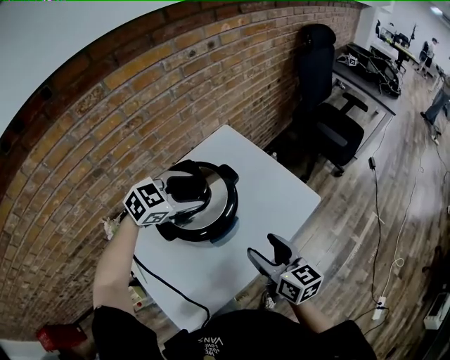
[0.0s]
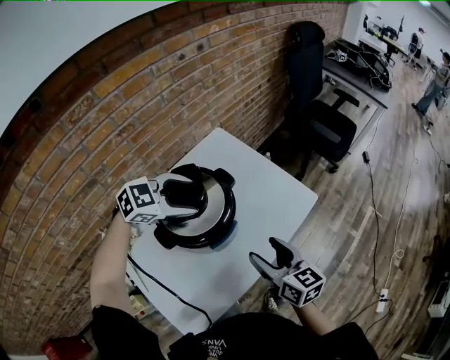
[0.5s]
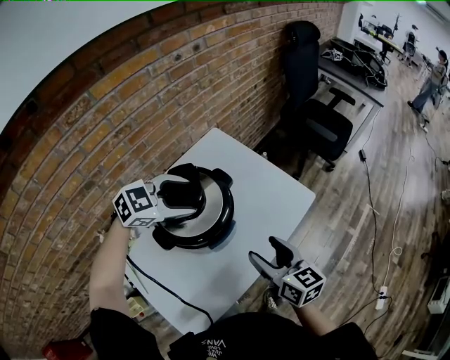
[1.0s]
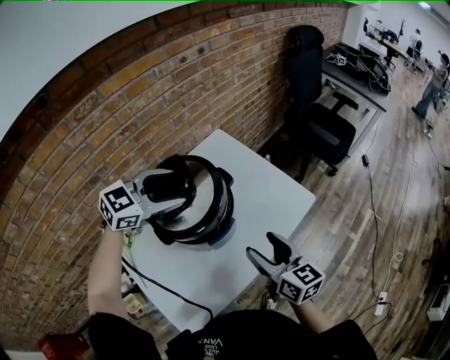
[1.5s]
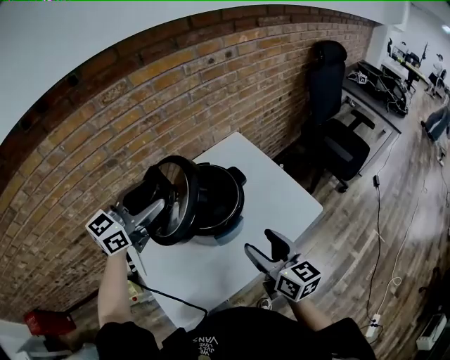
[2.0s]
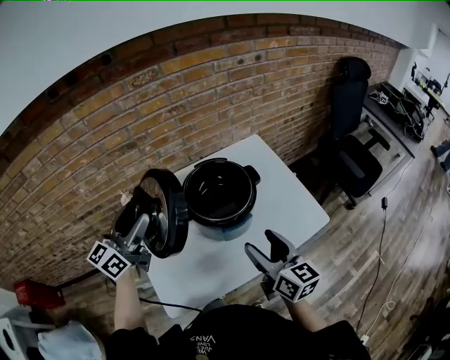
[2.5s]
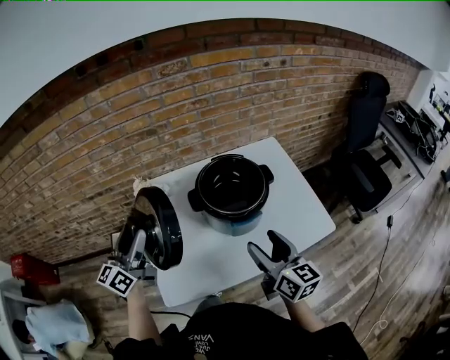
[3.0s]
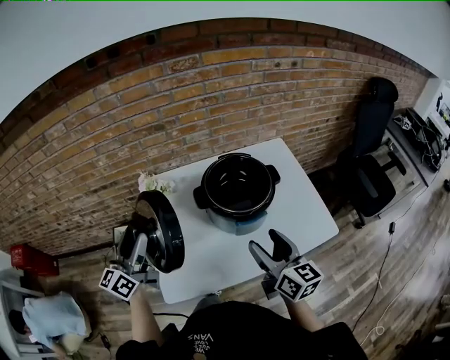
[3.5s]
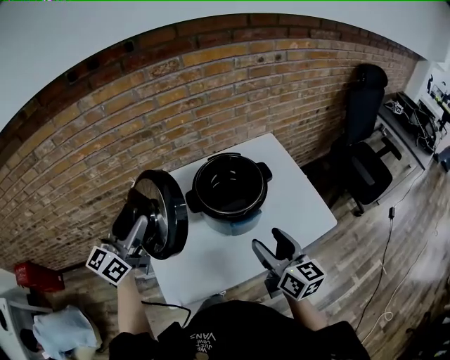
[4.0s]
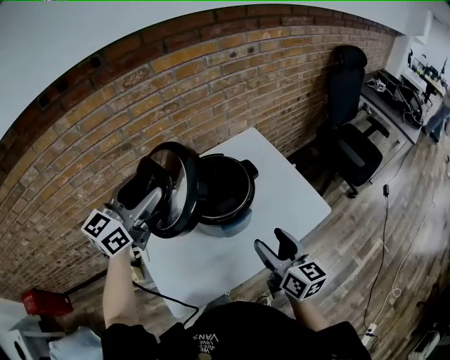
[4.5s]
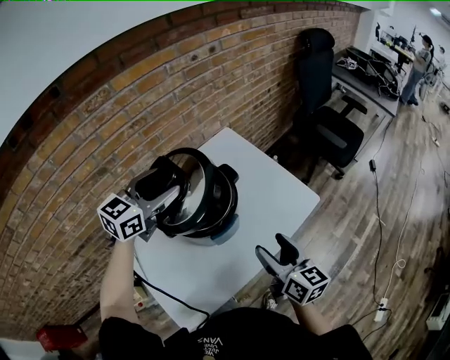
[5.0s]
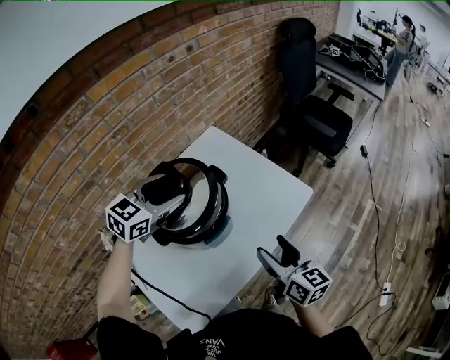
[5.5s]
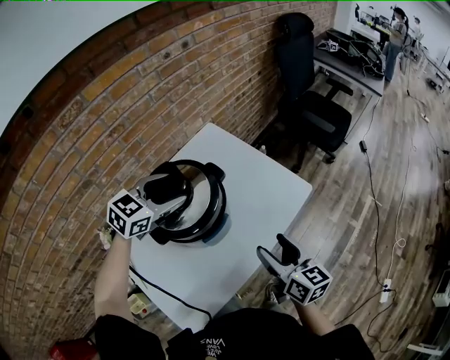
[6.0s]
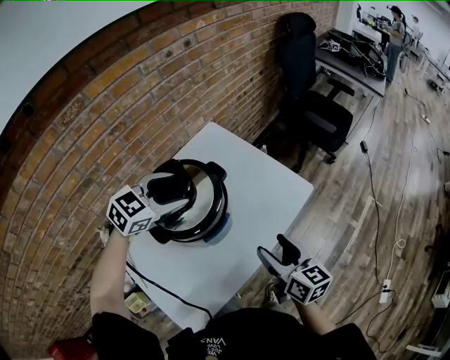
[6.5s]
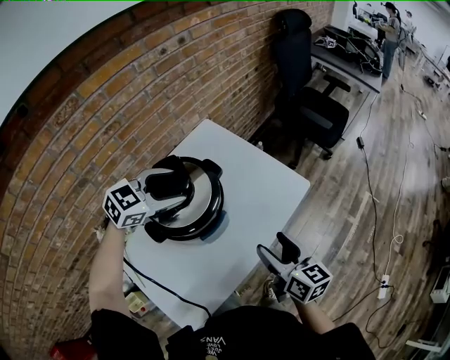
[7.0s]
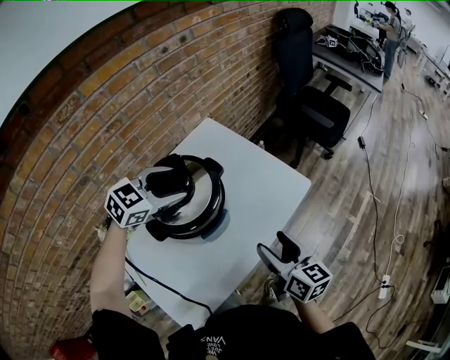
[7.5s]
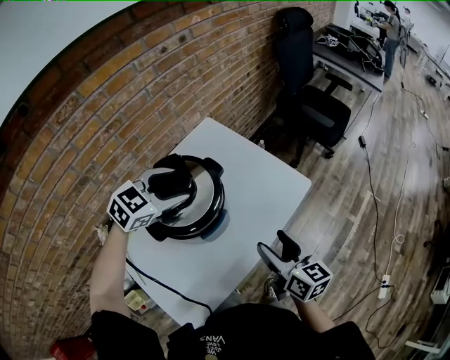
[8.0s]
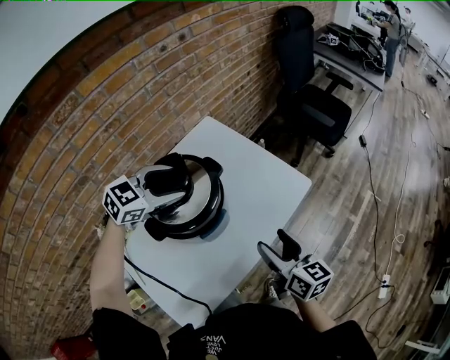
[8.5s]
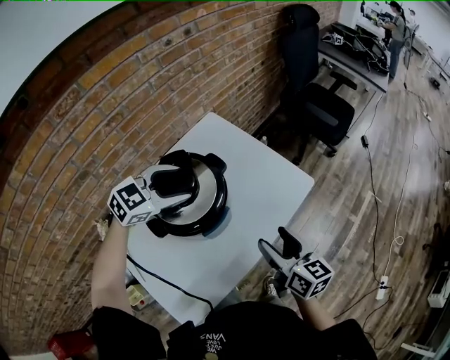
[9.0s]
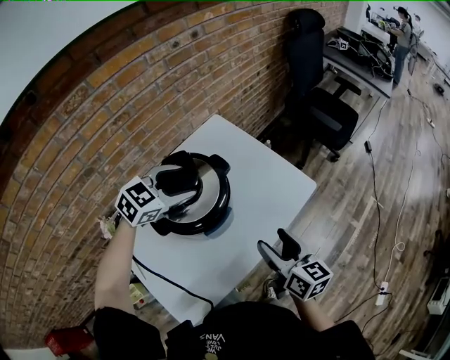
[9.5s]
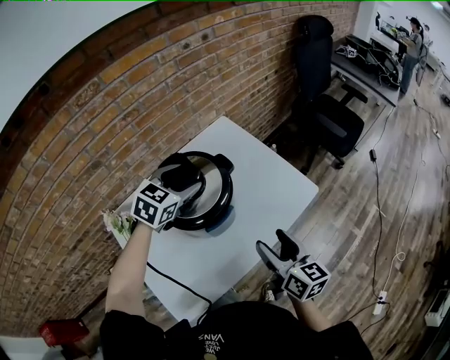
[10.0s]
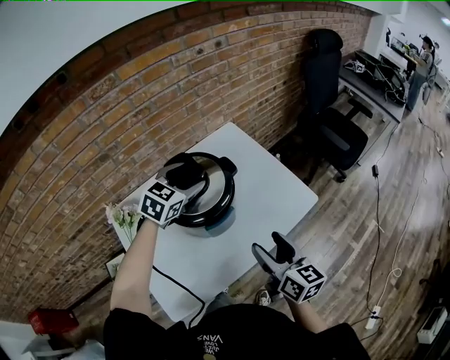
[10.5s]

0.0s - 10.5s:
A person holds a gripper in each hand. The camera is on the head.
0.0s - 2.0s: The left gripper heads upward, to the left and backward, covering about 20 cm, and points its fingers approximately 30 degrees further upward.
2.0s - 4.0s: The left gripper shifts by some 20 cm, and rotates roughly 30 degrees.
4.0s - 6.5s: The right gripper moves roughly 10 cm, and turns by some 20 degrees; the left gripper ends up about 30 cm from where it was, and angles its fingers downward, by approximately 40 degrees.
6.5s - 8.5s: The grippers move only a little.
8.5s - 10.5s: The left gripper turns by approximately 30 degrees.

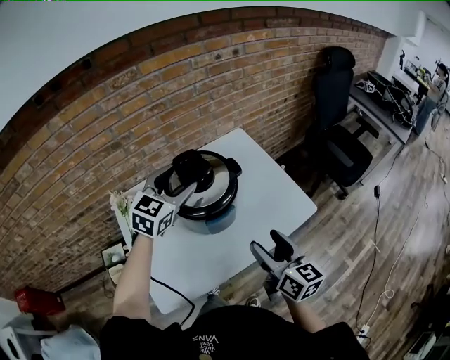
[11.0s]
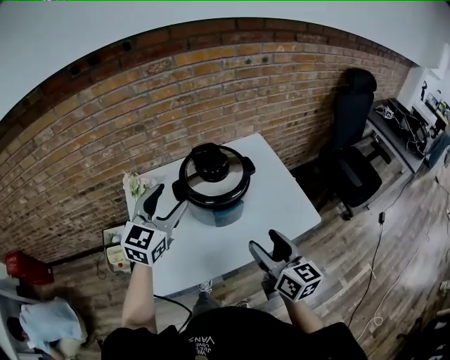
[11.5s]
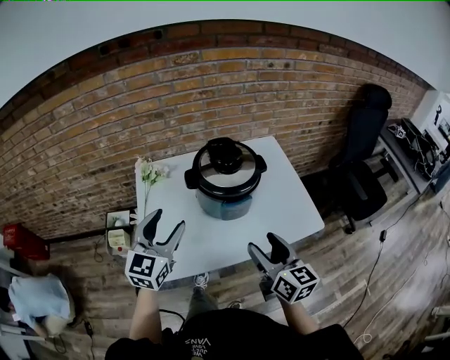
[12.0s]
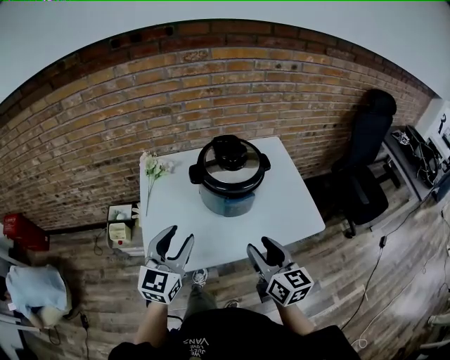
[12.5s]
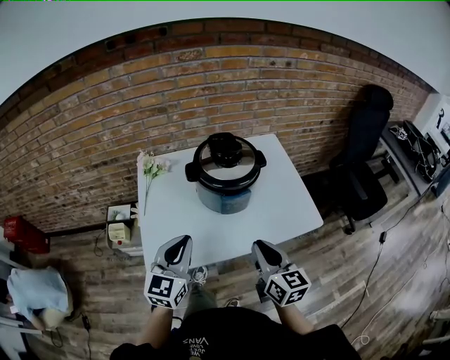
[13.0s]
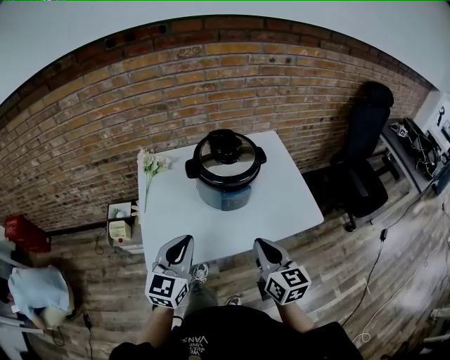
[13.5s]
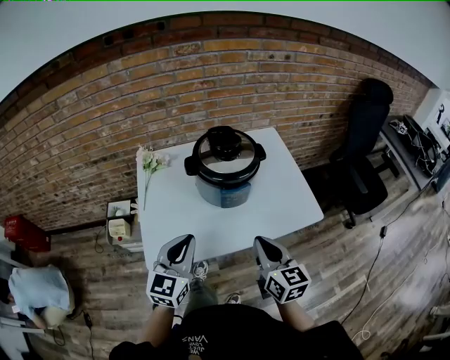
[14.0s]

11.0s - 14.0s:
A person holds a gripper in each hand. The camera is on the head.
11.0s - 12.5s: The left gripper heads backward, covering some 25 cm, and turns by roughly 30 degrees; the right gripper shifts by some 5 cm.
12.5s - 14.0s: The right gripper closes up. The left gripper closes its fingers.

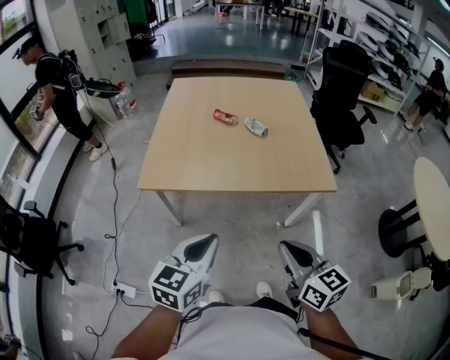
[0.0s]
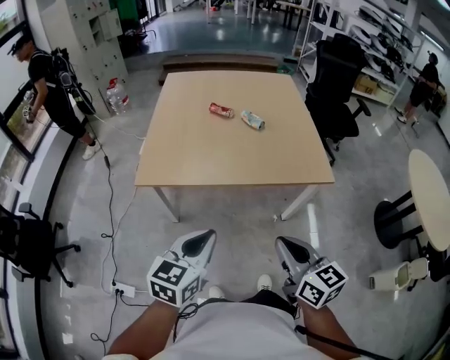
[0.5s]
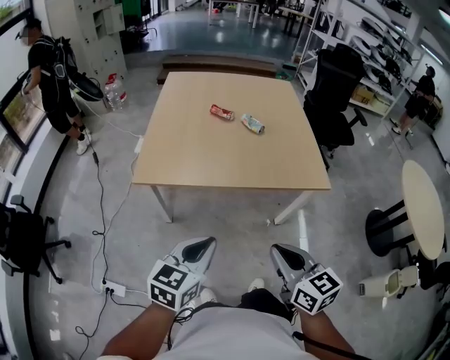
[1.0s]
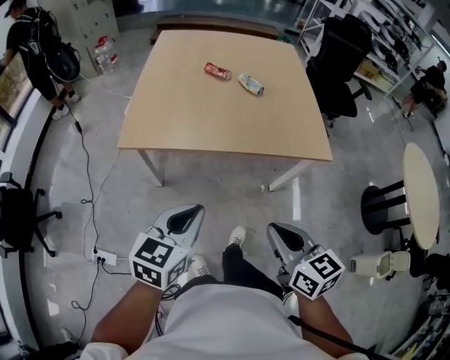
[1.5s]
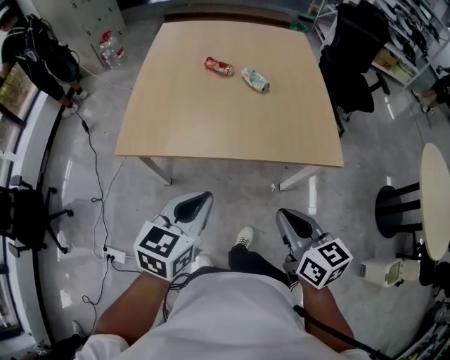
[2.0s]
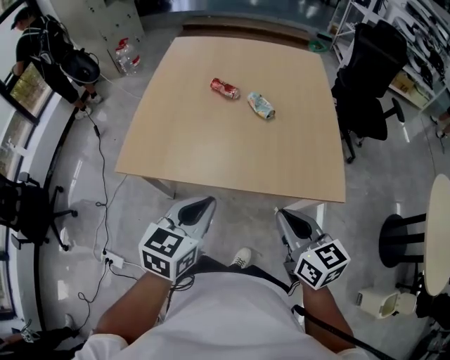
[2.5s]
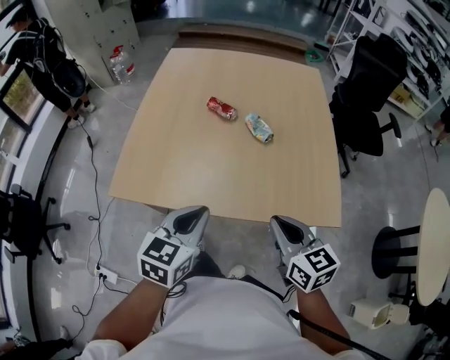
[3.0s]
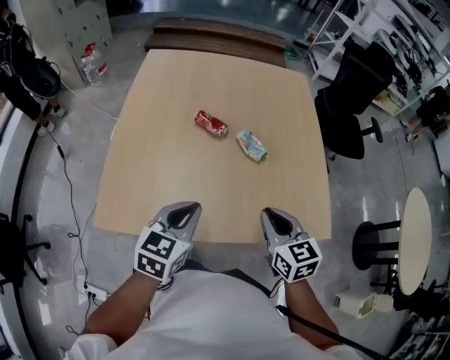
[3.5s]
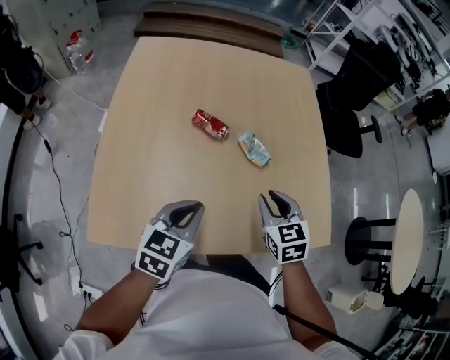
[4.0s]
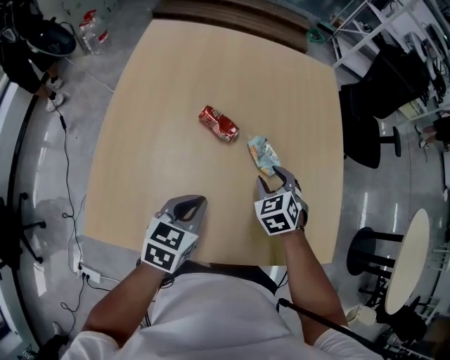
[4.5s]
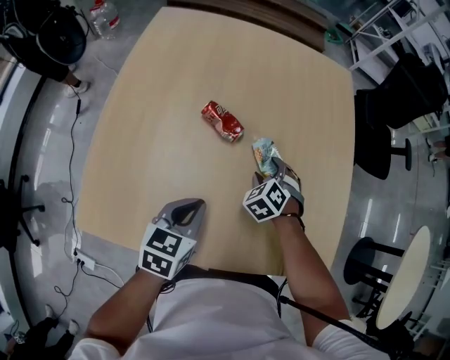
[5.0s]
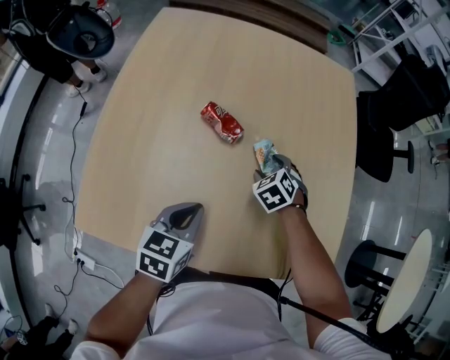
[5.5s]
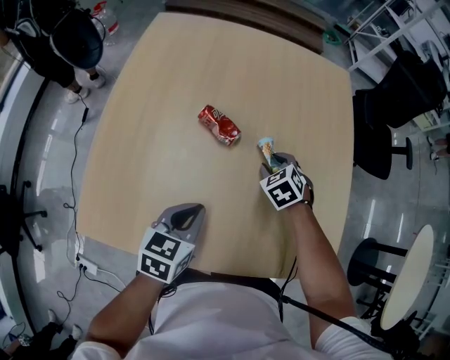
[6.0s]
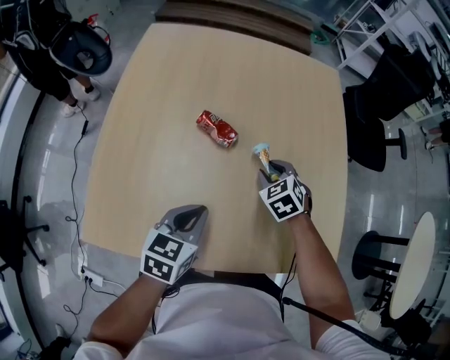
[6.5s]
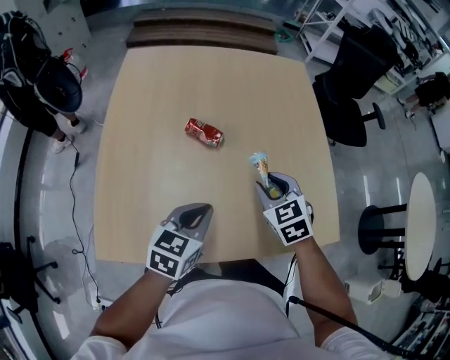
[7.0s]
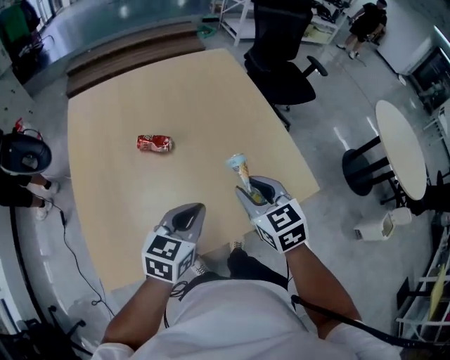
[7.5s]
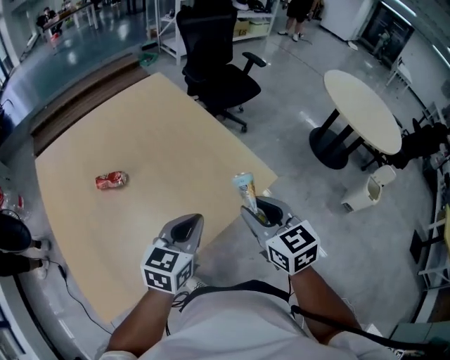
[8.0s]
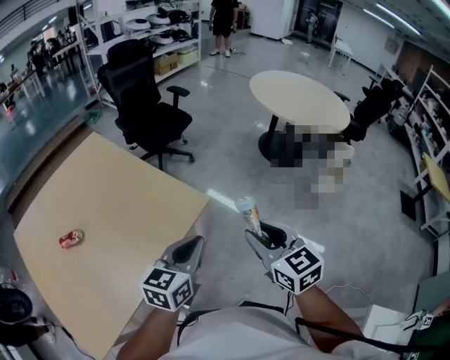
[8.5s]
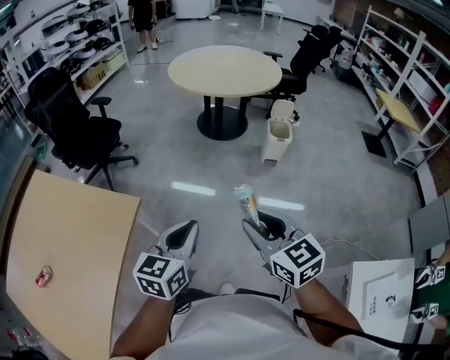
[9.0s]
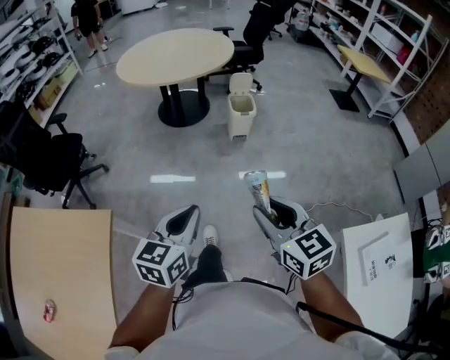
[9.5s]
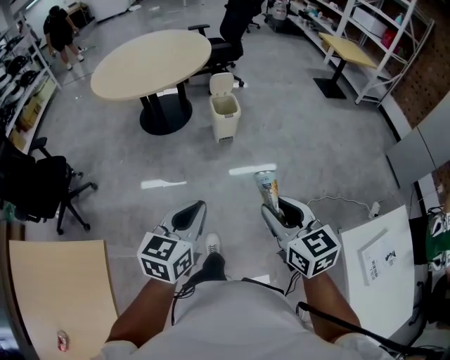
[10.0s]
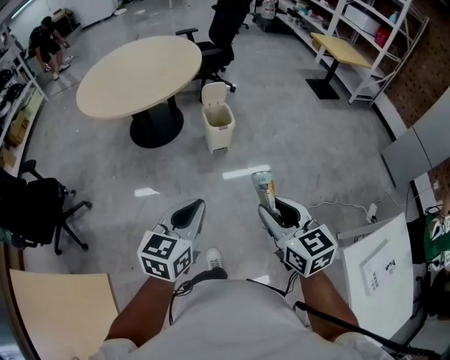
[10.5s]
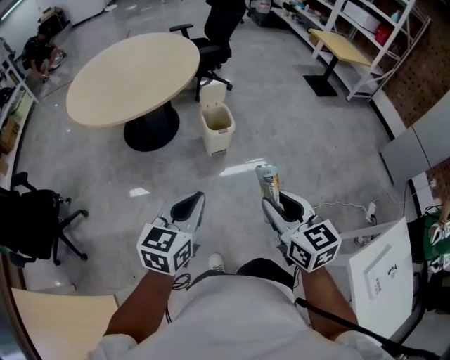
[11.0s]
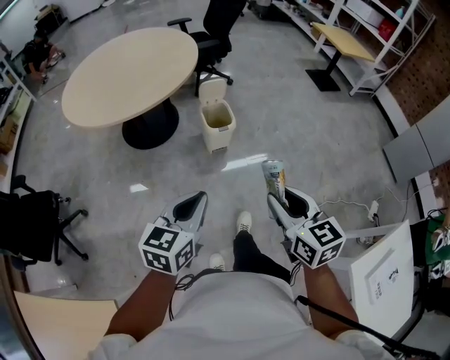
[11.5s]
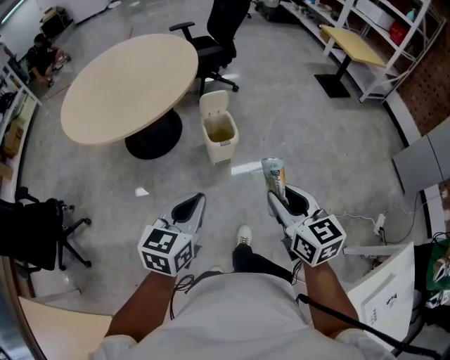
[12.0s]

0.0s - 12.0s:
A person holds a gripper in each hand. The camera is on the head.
0.0s - 2.0s: The two grippers go roughly 10 cm forward.
2.0s - 4.0s: Both grippers travel together forward, approximately 30 cm. The right gripper rotates some 30 degrees, and opens.
4.0s - 6.0s: The right gripper is displaced forward and downward by approximately 20 cm, rotates some 30 degrees, and opens, then closes again. Meanwhile the left gripper is displaced downward by roughly 5 cm.
6.0s - 8.0s: The left gripper moves roughly 20 cm, and rotates about 50 degrees. The right gripper shifts by about 40 cm, and angles its fingers upward, by about 40 degrees.
8.0s - 10.0s: Both grippers are carried about 60 cm. The right gripper turns by some 60 degrees. The left gripper changes its angle by approximately 60 degrees.
10.0s - 12.0s: Both grippers travel together forward, some 30 cm.

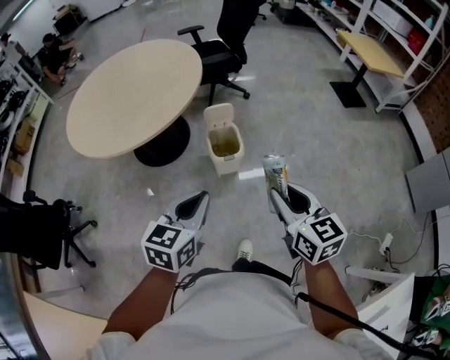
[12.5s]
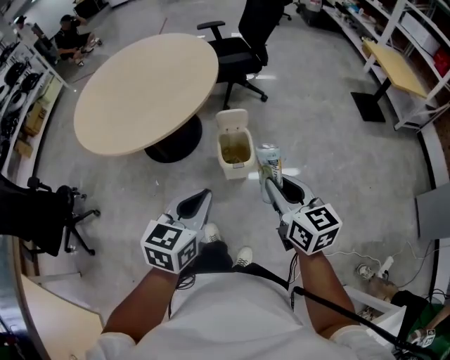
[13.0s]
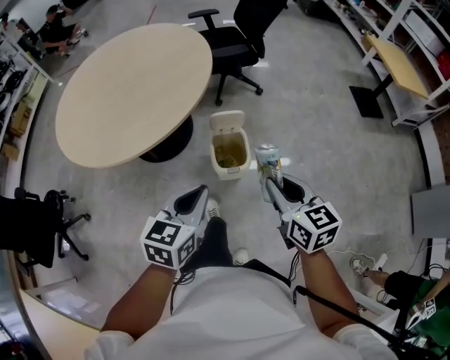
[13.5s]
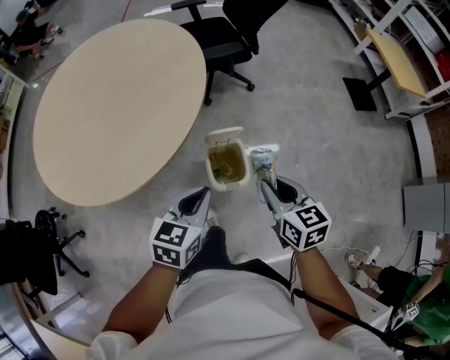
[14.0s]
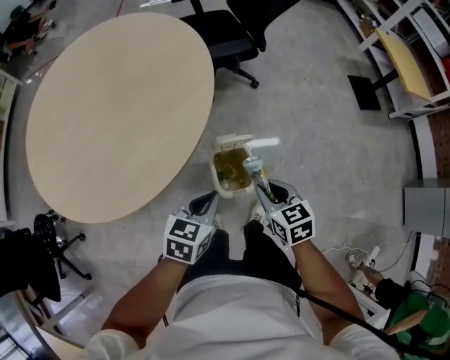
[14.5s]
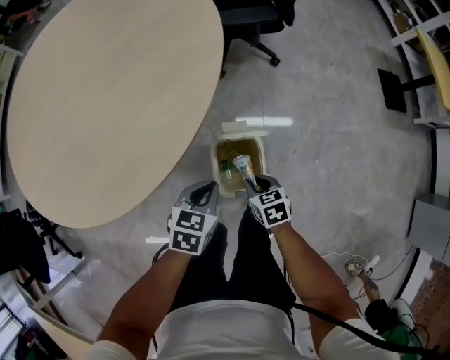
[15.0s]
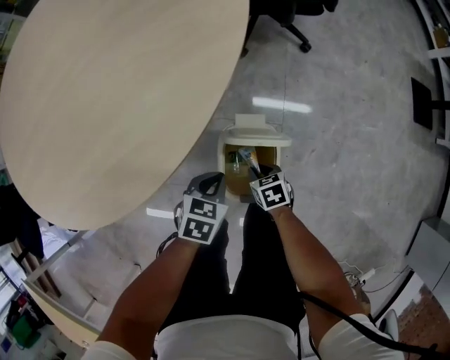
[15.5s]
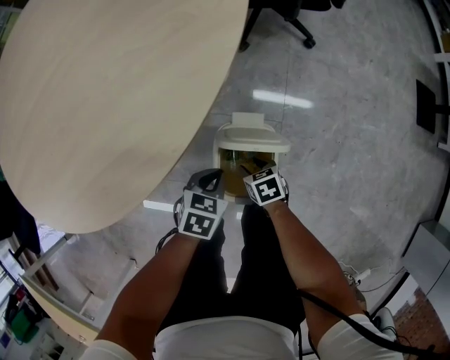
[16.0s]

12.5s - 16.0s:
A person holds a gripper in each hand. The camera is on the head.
12.5s - 14.5s: The grippers both shift forward and downward by approximately 35 cm. The right gripper turns by approximately 30 degrees.
14.5s - 16.0s: Both grippers travel together downward, approximately 30 cm. The left gripper swivels roughly 20 degrees, while the right gripper swivels about 30 degrees, and opens up.
